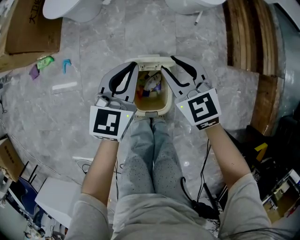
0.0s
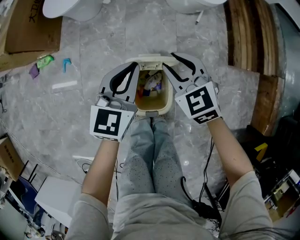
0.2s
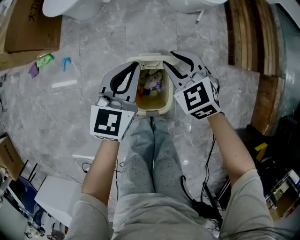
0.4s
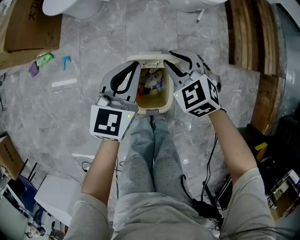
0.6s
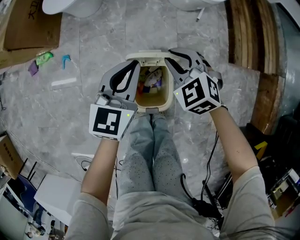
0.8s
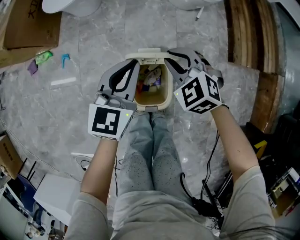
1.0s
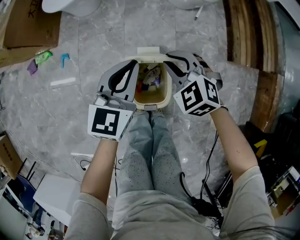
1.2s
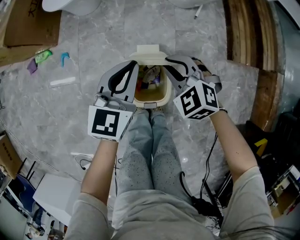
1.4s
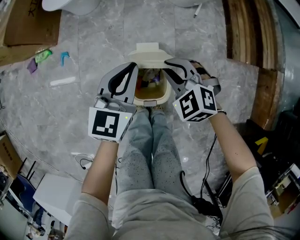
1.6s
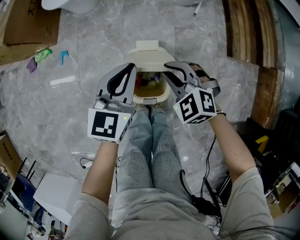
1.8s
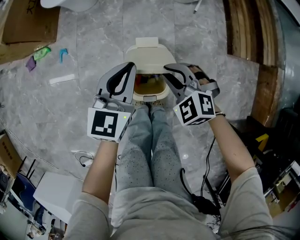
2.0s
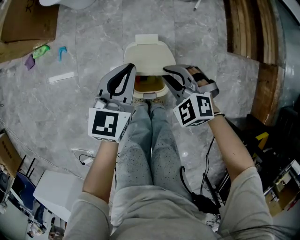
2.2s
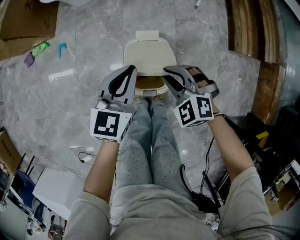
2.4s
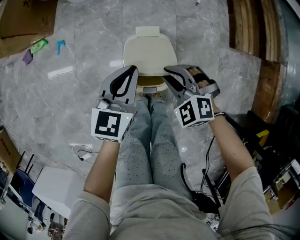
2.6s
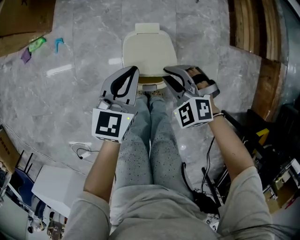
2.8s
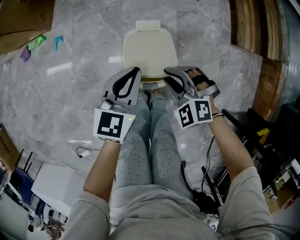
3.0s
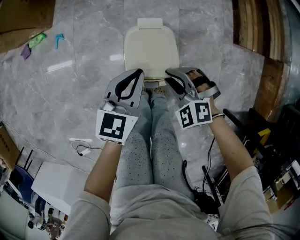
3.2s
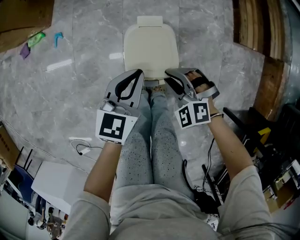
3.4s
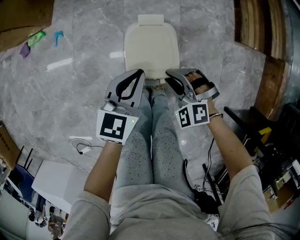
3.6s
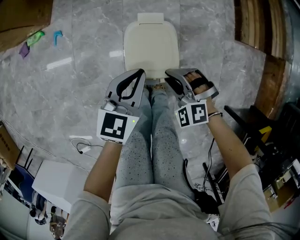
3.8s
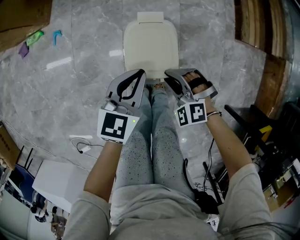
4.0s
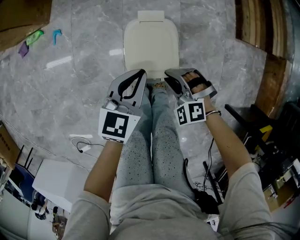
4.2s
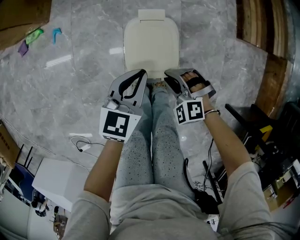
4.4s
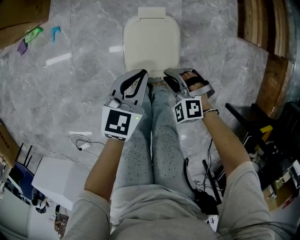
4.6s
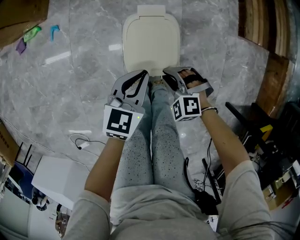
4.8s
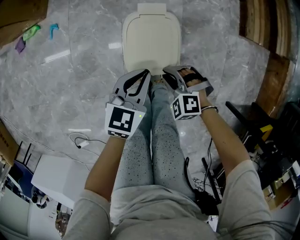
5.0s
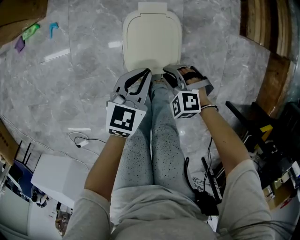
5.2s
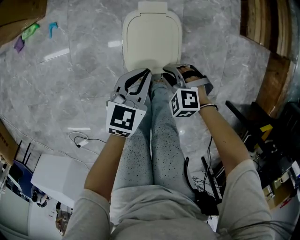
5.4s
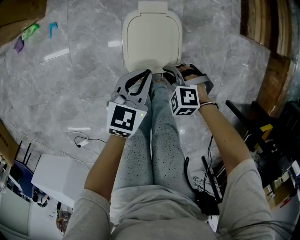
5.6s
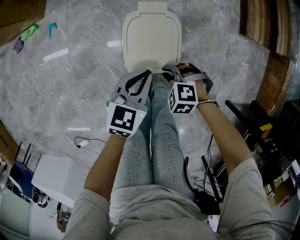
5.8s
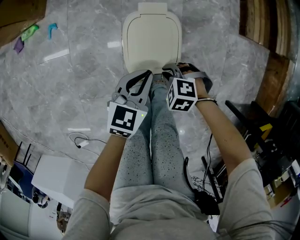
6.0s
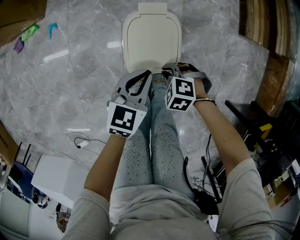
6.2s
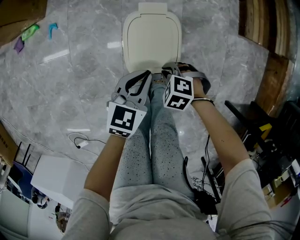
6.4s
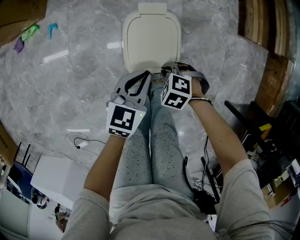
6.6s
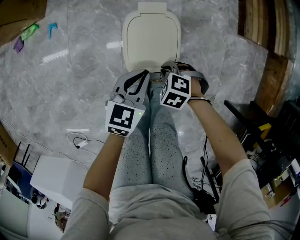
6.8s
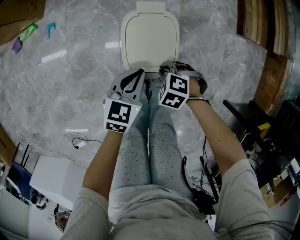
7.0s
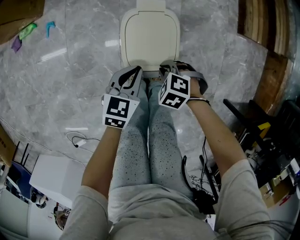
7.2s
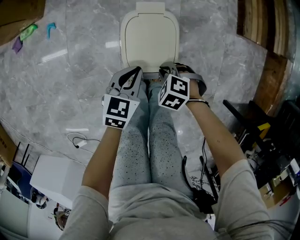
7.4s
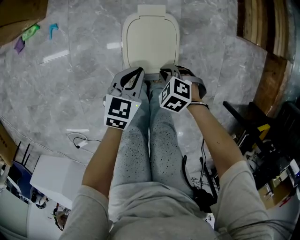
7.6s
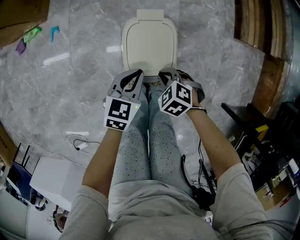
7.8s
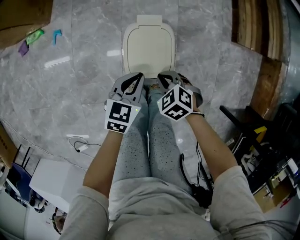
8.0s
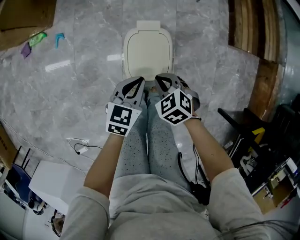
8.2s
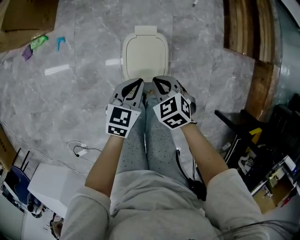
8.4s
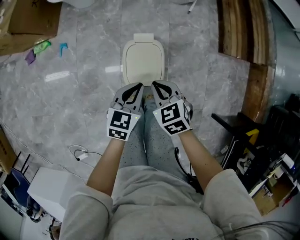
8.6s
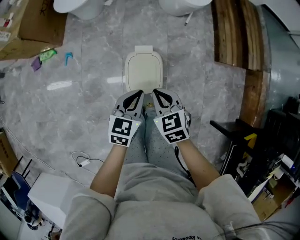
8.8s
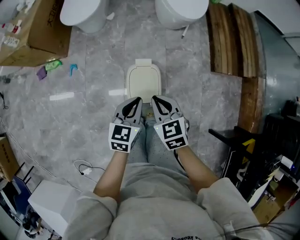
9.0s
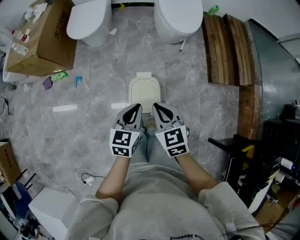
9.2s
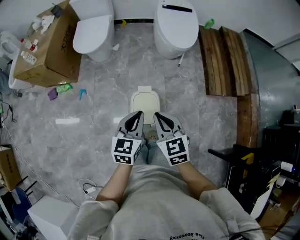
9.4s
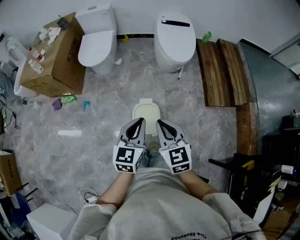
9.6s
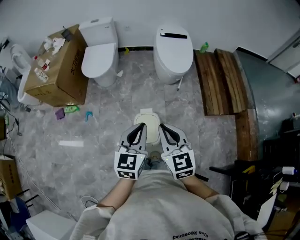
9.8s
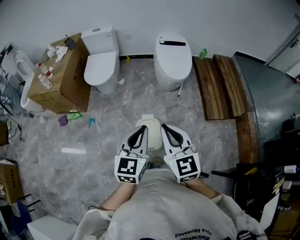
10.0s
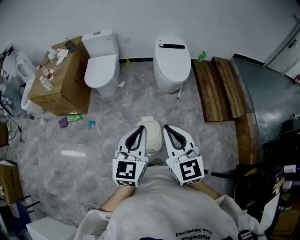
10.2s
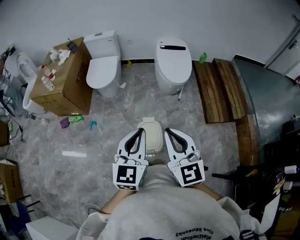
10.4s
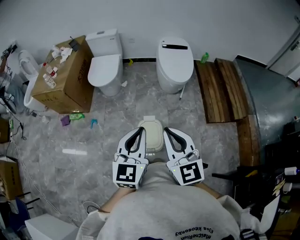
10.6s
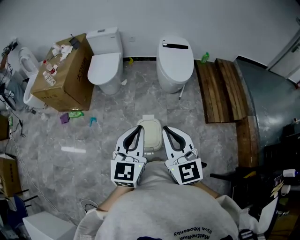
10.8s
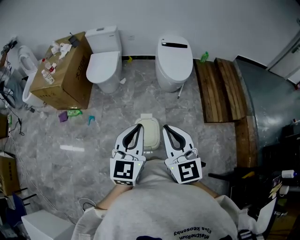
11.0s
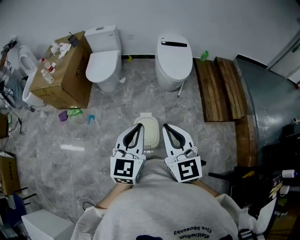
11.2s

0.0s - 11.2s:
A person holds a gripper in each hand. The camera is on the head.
0.0s - 1.6s: The right gripper travels backward and downward by approximately 10 cm, and changes its angle by about 30 degrees. Meanwhile the left gripper travels backward by roughly 5 cm.
1.6s - 3.2s: The two grippers go about 15 cm backward and downward.
3.2s - 4.8s: The grippers both shift downward by approximately 10 cm.
4.8s - 6.4s: The right gripper changes its angle by about 20 degrees.
6.4s - 8.0s: The right gripper shifts roughly 10 cm upward, and turns by about 20 degrees.
8.0s - 9.6s: Both grippers travel together upward, about 50 cm. The left gripper turns by about 30 degrees. Meanwhile the right gripper angles its fingers upward, by about 40 degrees.
9.6s - 11.2s: The right gripper is displaced upward by some 15 cm, and turns by about 20 degrees, while the left gripper shifts roughly 15 cm upward and backward.

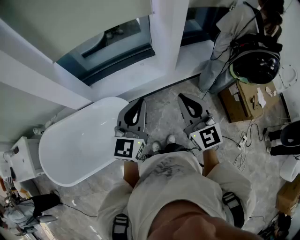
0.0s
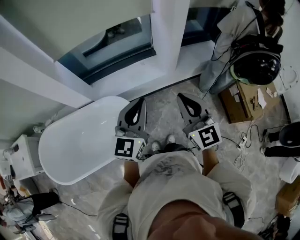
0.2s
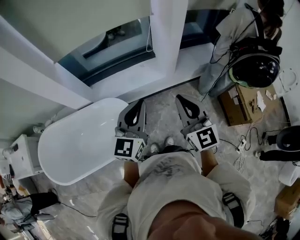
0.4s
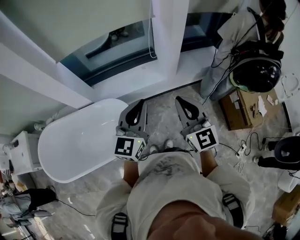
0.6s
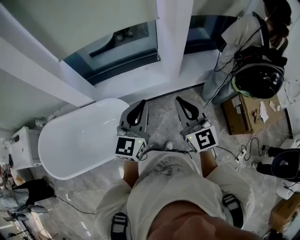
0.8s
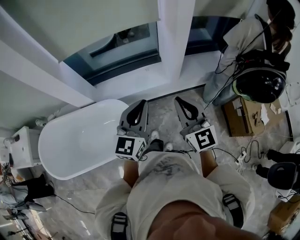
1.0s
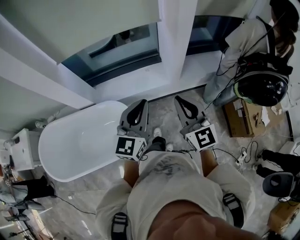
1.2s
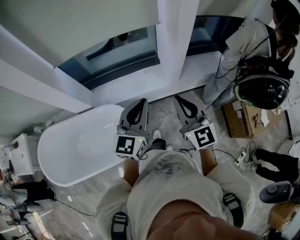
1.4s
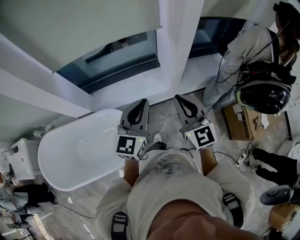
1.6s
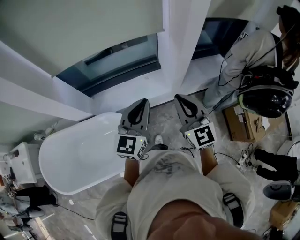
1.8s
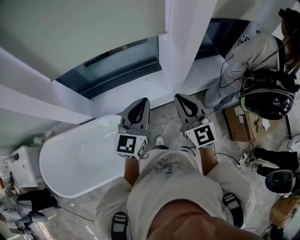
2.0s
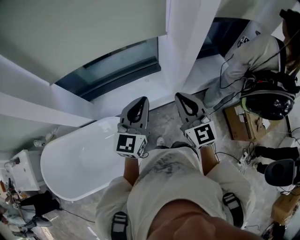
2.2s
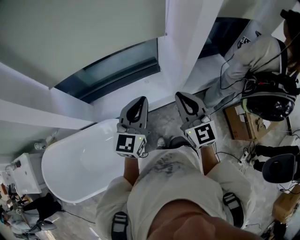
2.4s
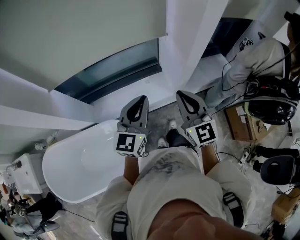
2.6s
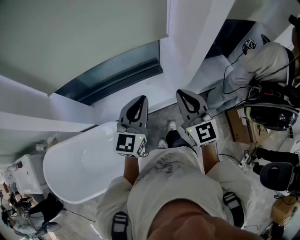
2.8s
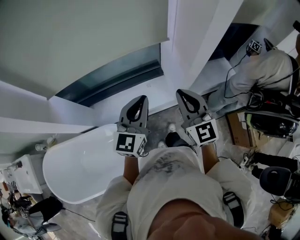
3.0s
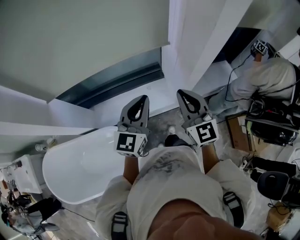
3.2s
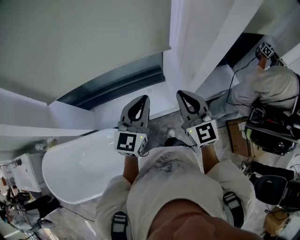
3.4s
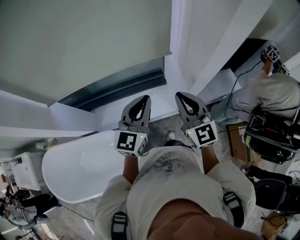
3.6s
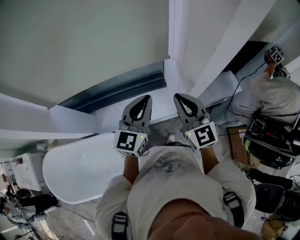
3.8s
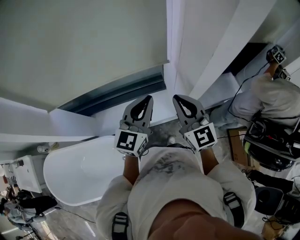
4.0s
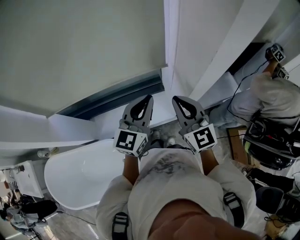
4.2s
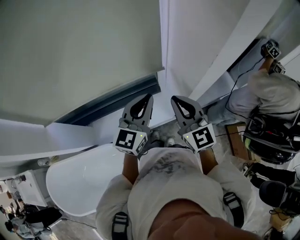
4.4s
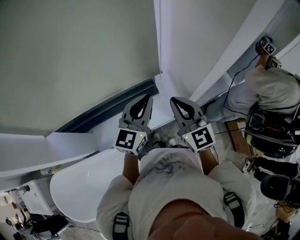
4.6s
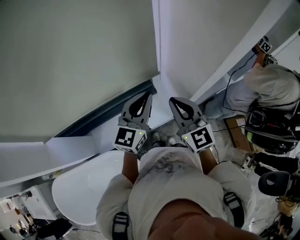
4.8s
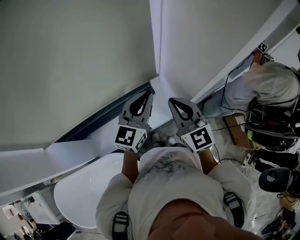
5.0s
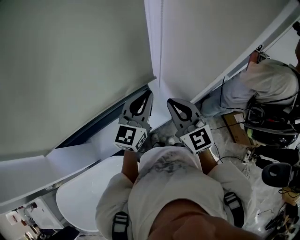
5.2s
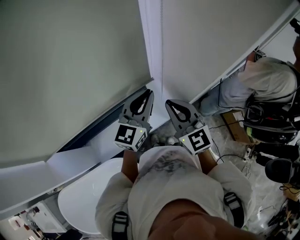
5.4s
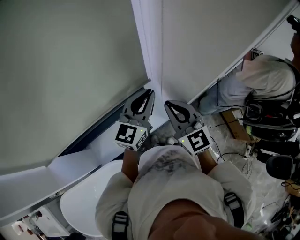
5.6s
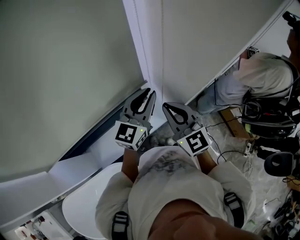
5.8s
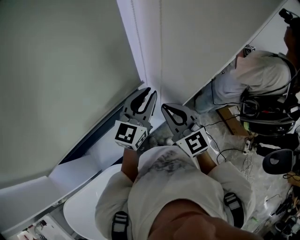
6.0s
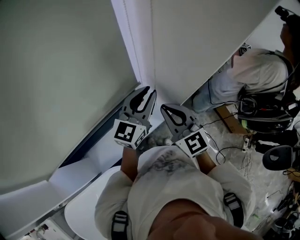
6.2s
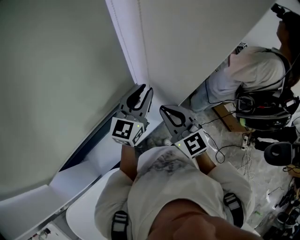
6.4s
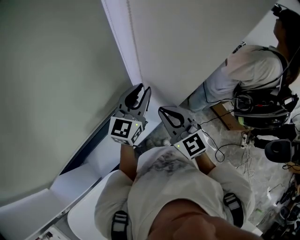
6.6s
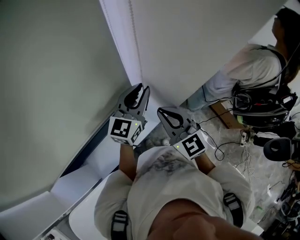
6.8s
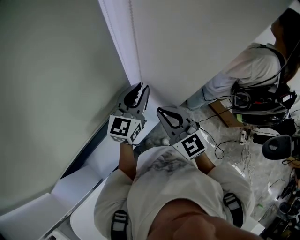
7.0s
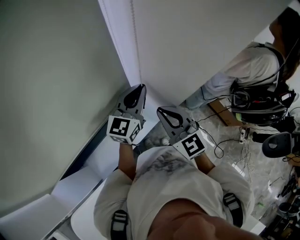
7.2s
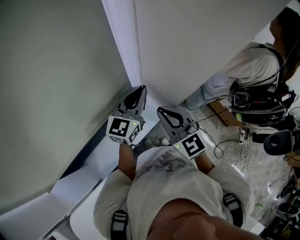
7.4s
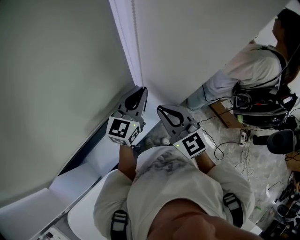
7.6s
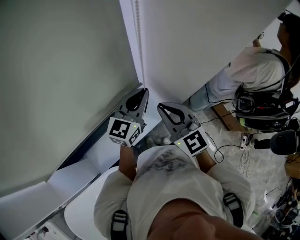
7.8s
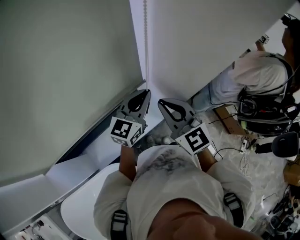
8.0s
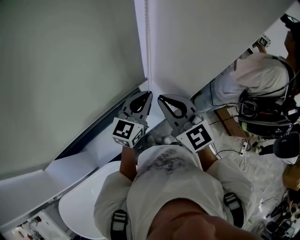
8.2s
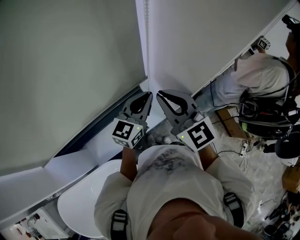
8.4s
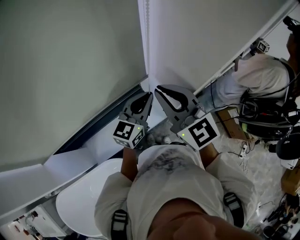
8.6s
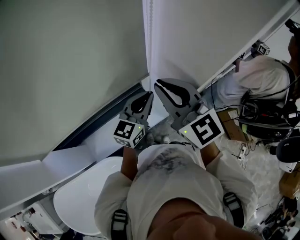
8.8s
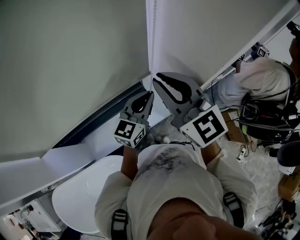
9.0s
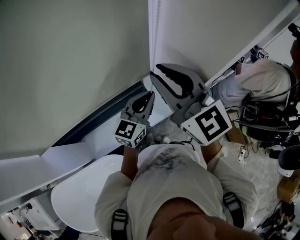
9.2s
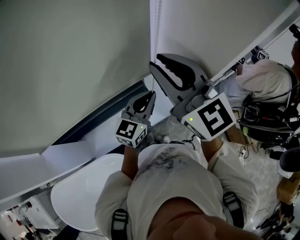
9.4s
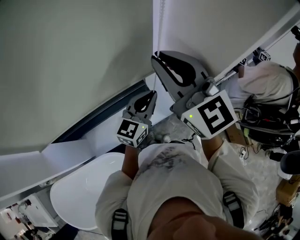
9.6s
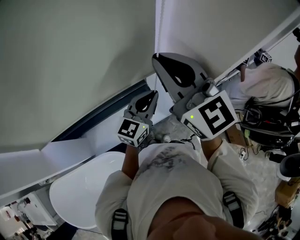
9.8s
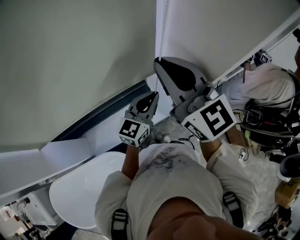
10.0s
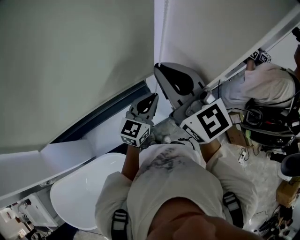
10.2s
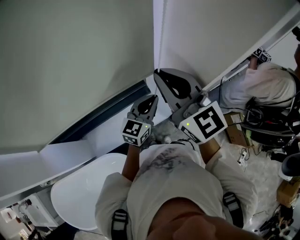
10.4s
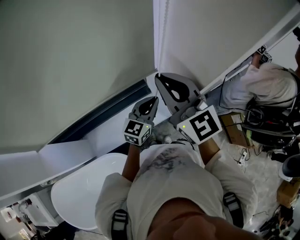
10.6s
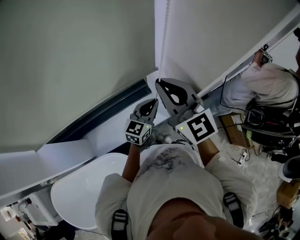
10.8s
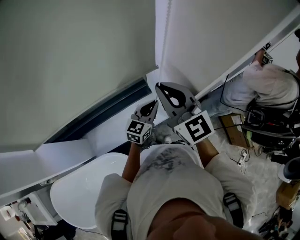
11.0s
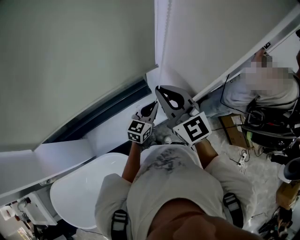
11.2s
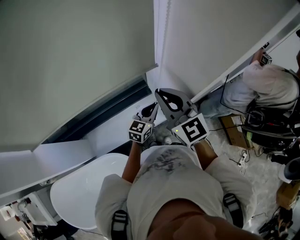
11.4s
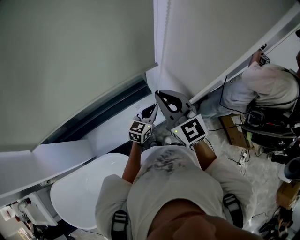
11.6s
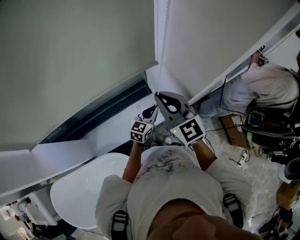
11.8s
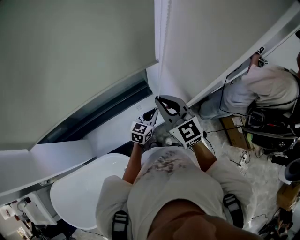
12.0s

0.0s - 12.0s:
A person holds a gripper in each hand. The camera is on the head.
0.0s - 1.6s: Both grippers move forward, some 15 cm.
1.6s - 3.0s: The grippers both shift forward by roughly 20 cm.
3.0s - 4.4s: The grippers both shift forward by about 15 cm.
4.4s - 6.0s: The left gripper goes approximately 10 cm forward and to the right, and swivels roughly 20 degrees.
6.0s - 7.6s: The grippers make only small movements.
7.6s - 9.0s: The right gripper goes about 15 cm upward and to the left; the left gripper heads backward, covering approximately 5 cm.
9.0s - 10.4s: The left gripper travels downward by some 5 cm.
10.4s - 12.0s: The two grippers go approximately 15 cm downward.

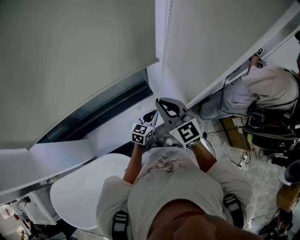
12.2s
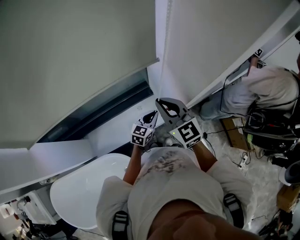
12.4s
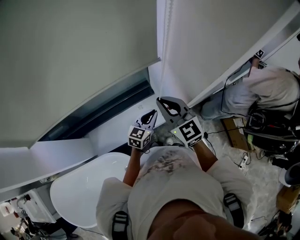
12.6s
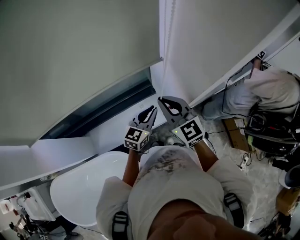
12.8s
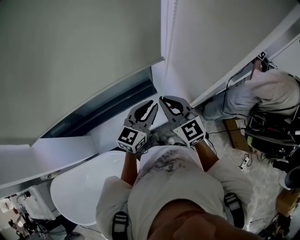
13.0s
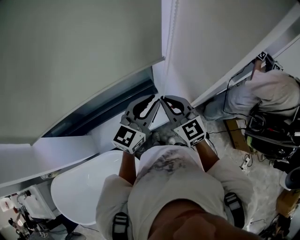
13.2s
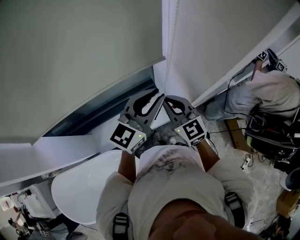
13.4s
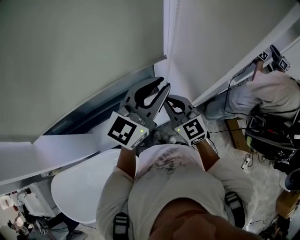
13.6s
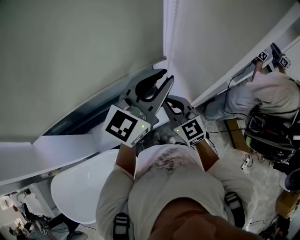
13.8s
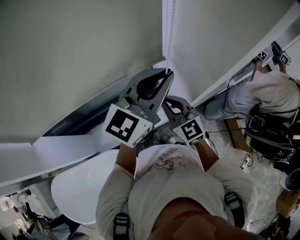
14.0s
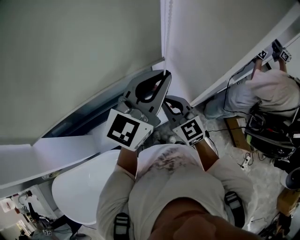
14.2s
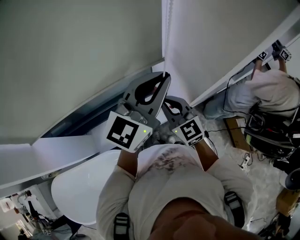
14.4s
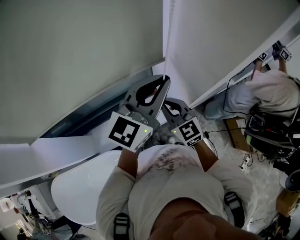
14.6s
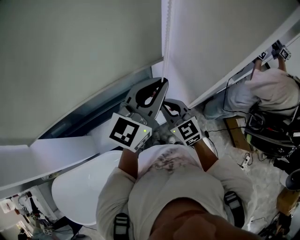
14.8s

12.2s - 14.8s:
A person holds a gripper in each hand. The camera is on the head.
12.2s - 13.4s: The left gripper shifts some 30 cm upward, and changes its angle by some 30 degrees.
13.4s - 14.8s: The left gripper heads upward, covering about 5 cm.
